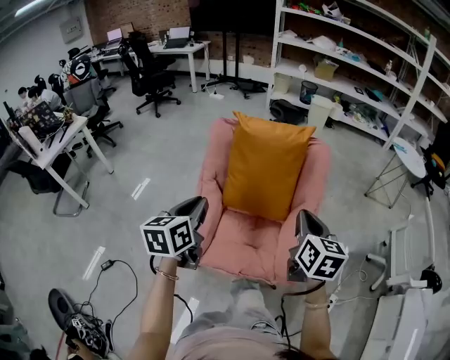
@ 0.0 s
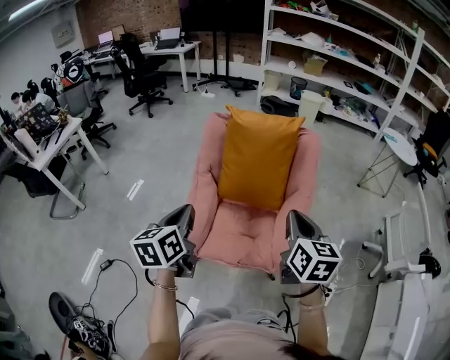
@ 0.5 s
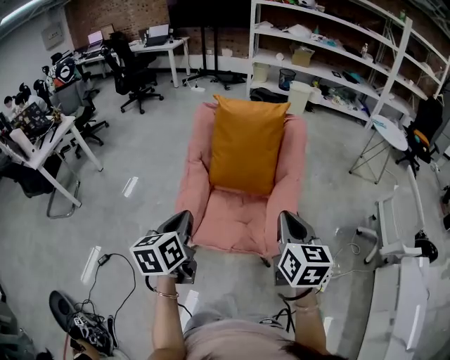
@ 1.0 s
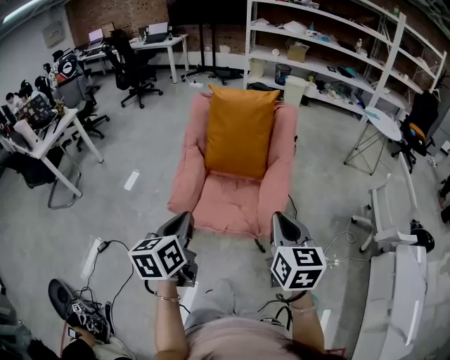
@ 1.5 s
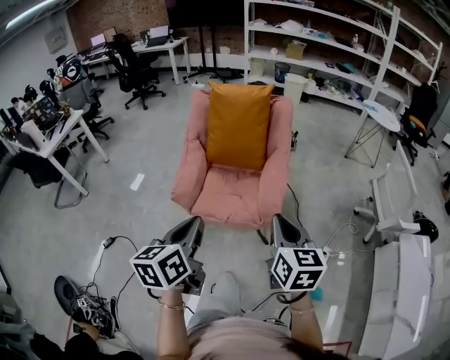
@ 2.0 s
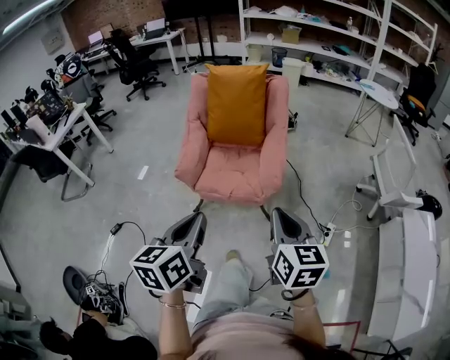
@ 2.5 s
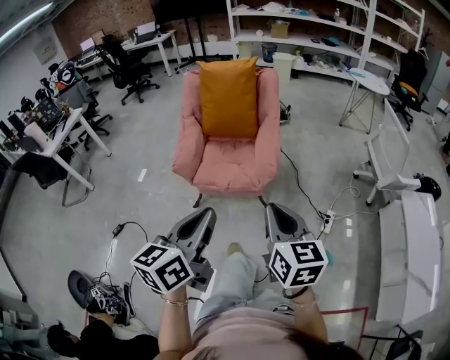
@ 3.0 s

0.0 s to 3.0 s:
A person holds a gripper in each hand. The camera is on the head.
0.0 to 1.5 s: The grippers both shift backward by about 25 cm.
1.5 to 3.0 s: The right gripper travels backward by about 25 cm. The left gripper goes some 30 cm backward and to the right, and swivels about 20 degrees.

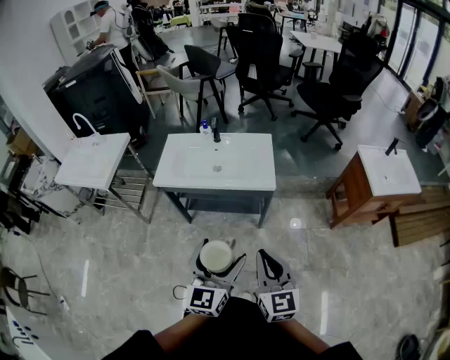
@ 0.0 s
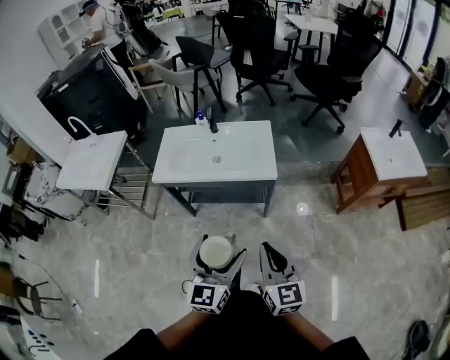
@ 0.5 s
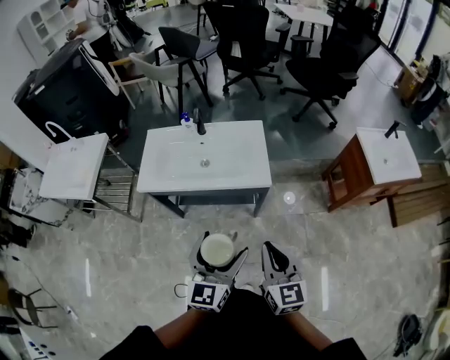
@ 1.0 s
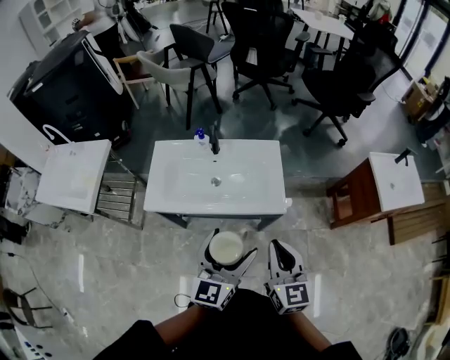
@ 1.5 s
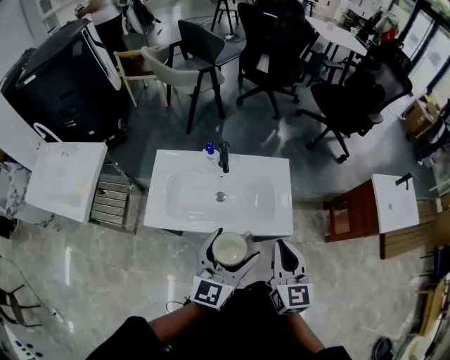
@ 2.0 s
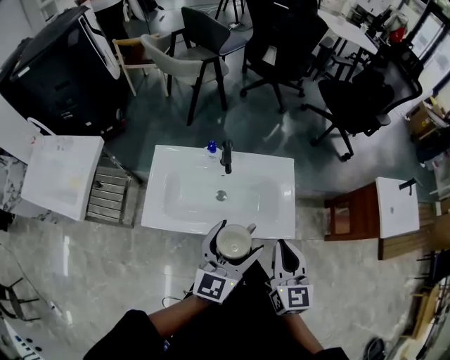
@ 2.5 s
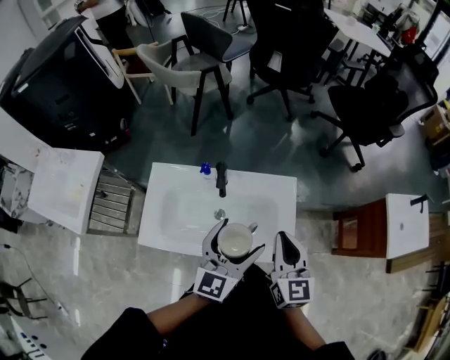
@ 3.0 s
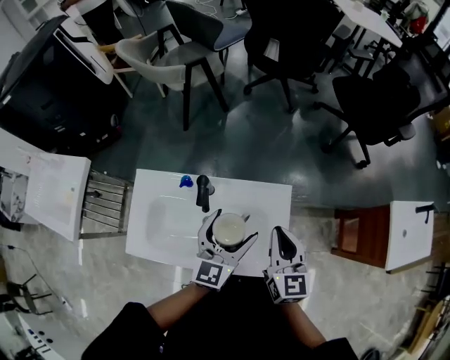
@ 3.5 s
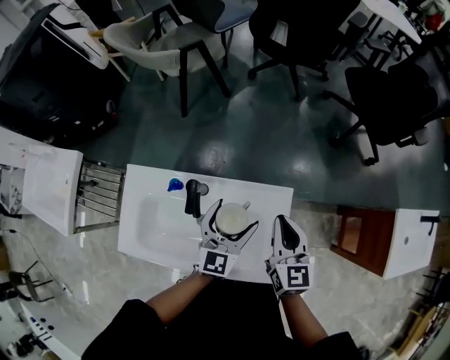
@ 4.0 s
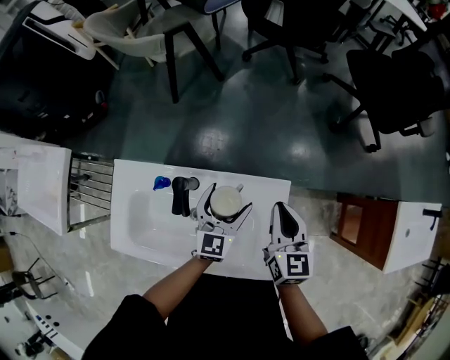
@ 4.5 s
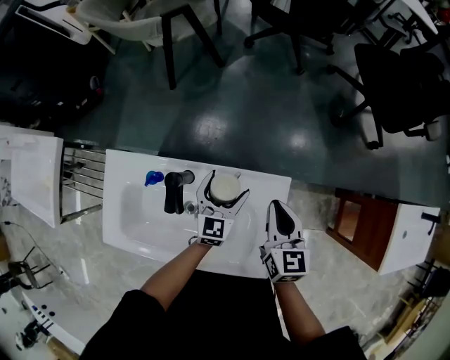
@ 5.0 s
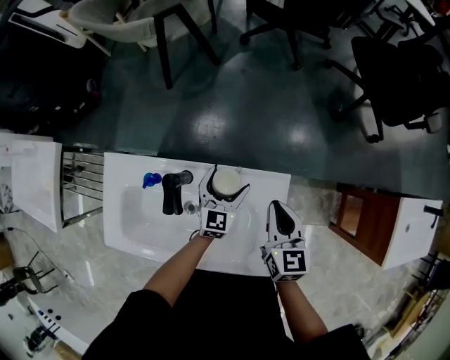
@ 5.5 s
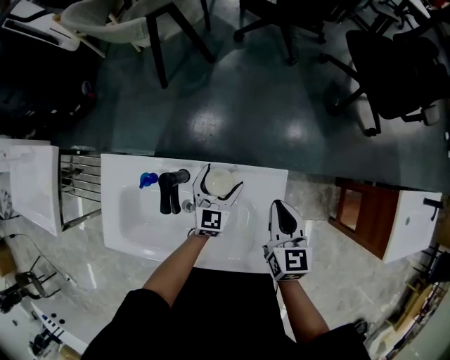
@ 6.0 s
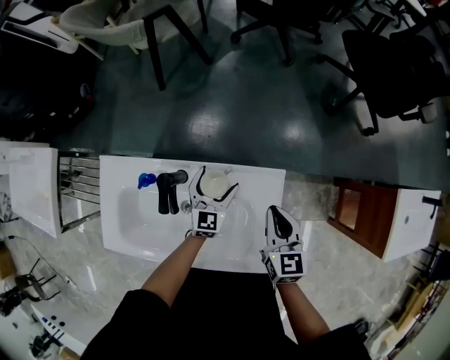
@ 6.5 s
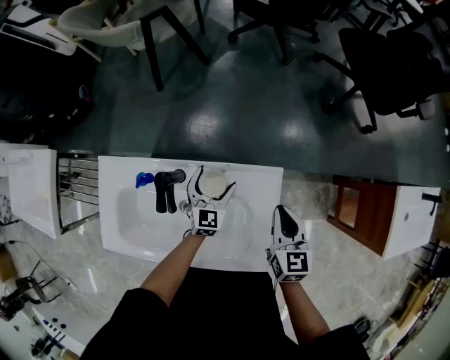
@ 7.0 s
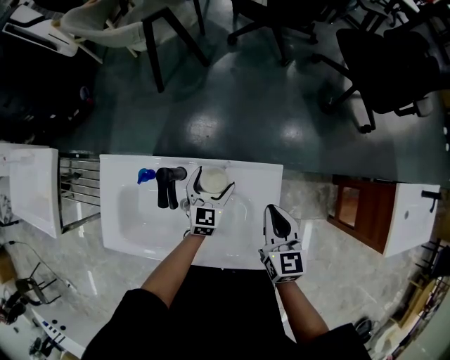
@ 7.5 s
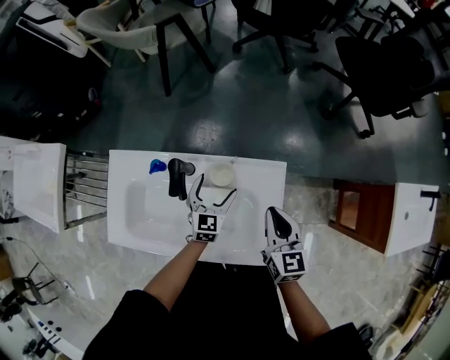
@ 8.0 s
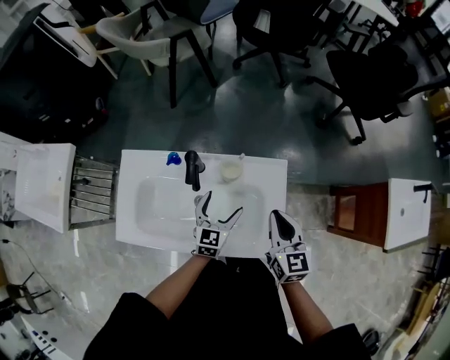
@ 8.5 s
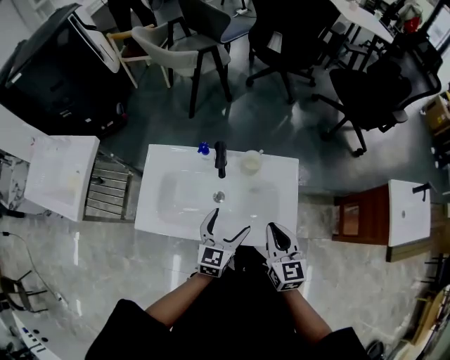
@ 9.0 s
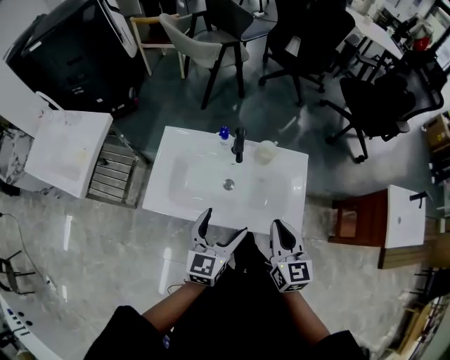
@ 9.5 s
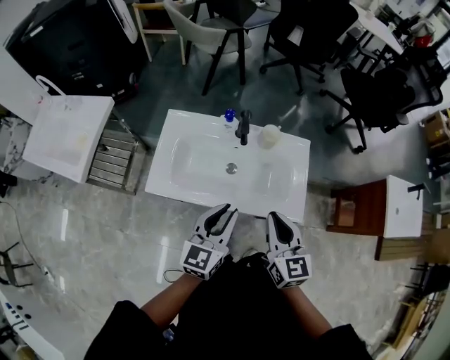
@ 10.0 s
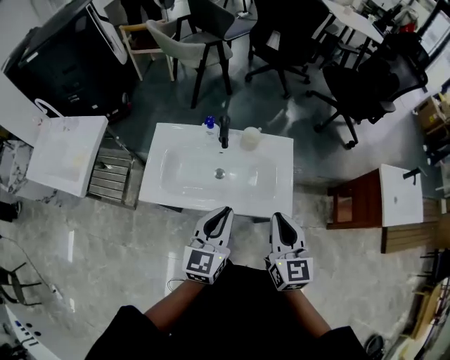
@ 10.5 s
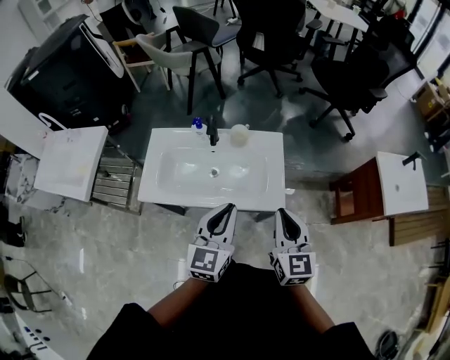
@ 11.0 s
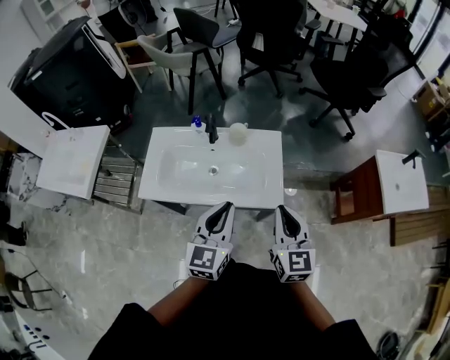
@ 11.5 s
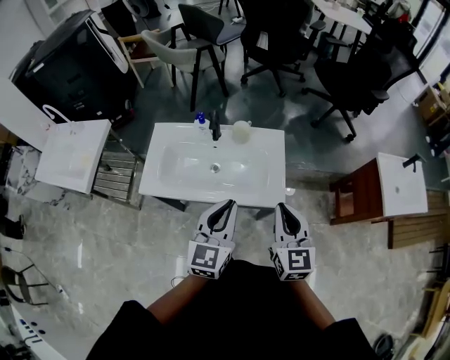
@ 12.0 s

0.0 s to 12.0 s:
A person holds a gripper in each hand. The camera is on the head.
0.0 to 2.0 s: The grippers both shift forward by some 40 cm.
2.0 to 4.0 s: The right gripper goes approximately 40 cm forward. The left gripper goes approximately 40 cm forward and downward.
4.0 to 6.0 s: The left gripper is displaced downward and forward by about 20 cm. The right gripper moves downward, about 10 cm.
6.0 to 8.0 s: Both grippers move backward, roughly 5 cm.
8.0 to 10.0 s: The left gripper shifts some 40 cm backward, upward and to the left, rotates approximately 20 degrees, and closes. The right gripper is displaced backward, to the left and upward by roughly 35 cm.
10.0 to 12.0 s: The right gripper shifts some 15 cm to the right and upward. The left gripper moves to the right, upward and backward, approximately 15 cm.

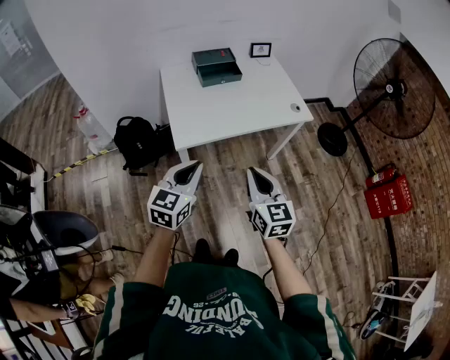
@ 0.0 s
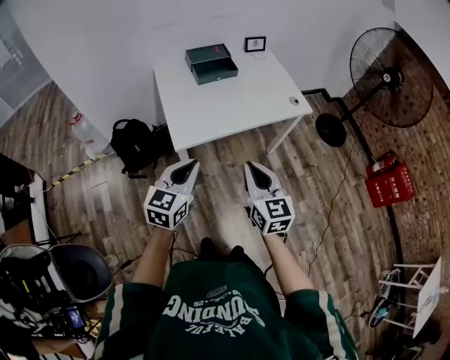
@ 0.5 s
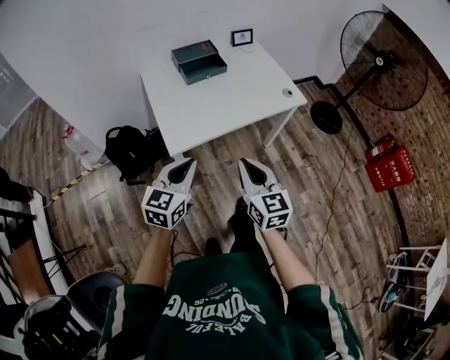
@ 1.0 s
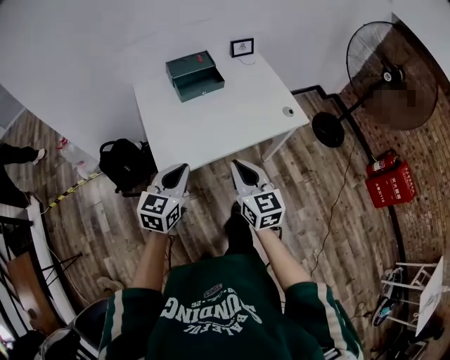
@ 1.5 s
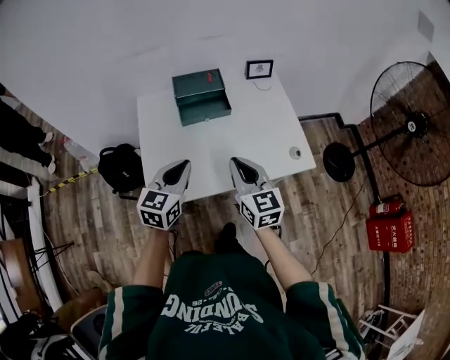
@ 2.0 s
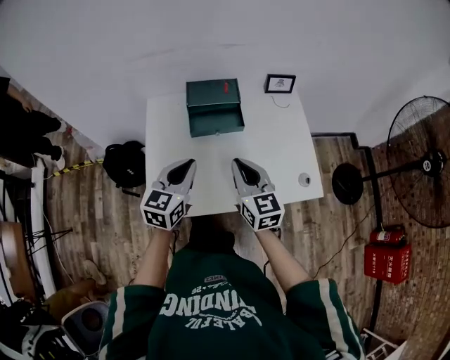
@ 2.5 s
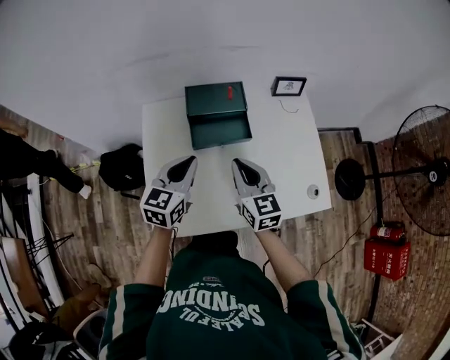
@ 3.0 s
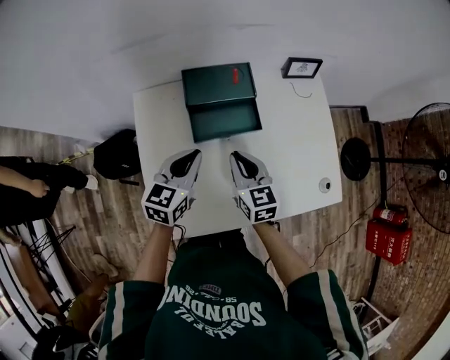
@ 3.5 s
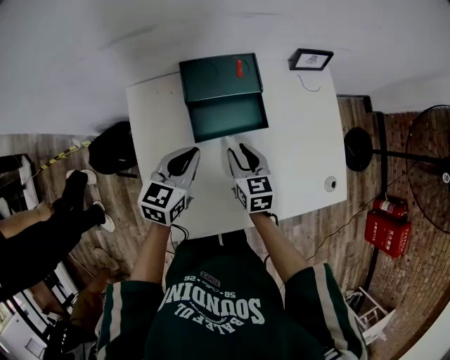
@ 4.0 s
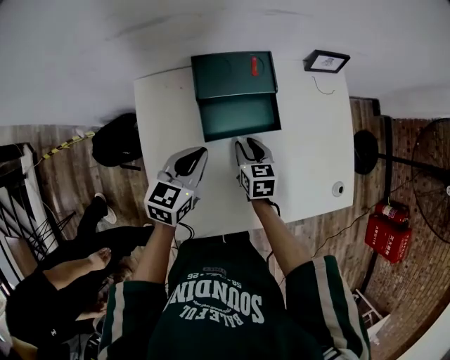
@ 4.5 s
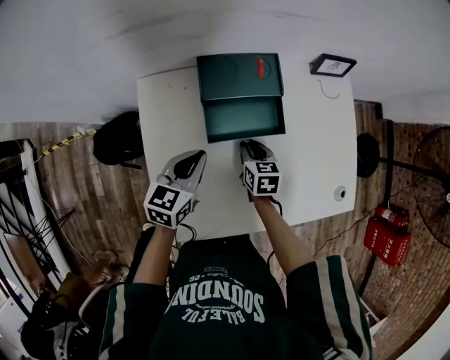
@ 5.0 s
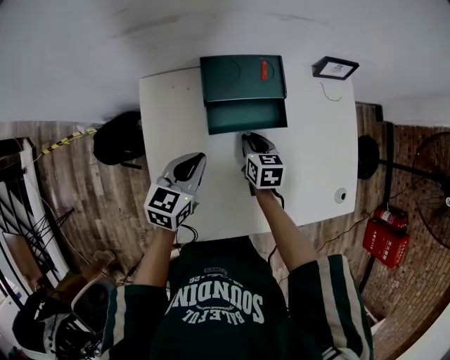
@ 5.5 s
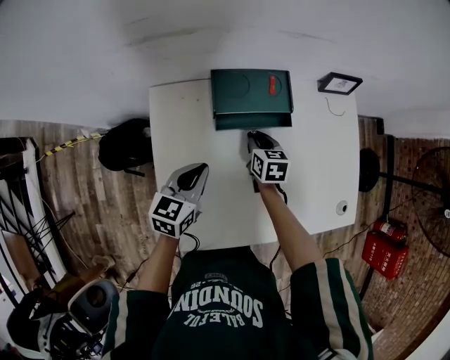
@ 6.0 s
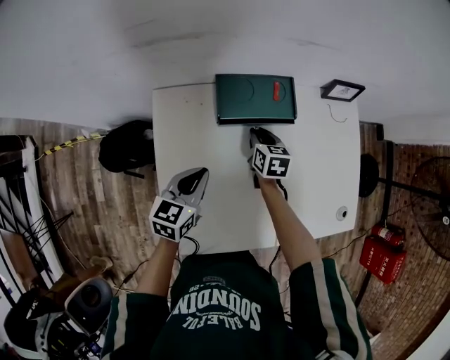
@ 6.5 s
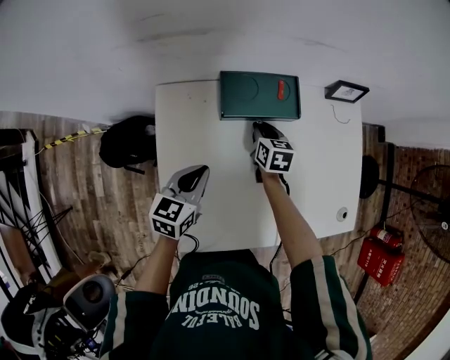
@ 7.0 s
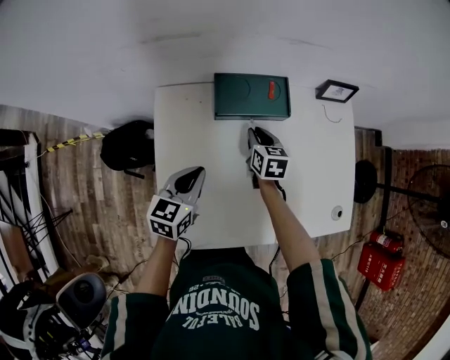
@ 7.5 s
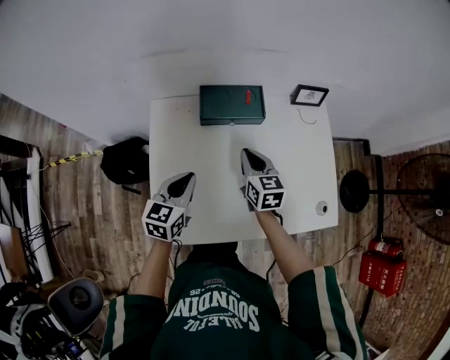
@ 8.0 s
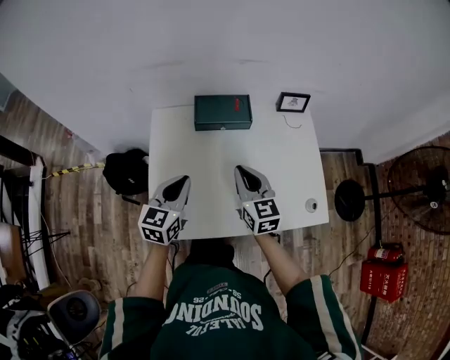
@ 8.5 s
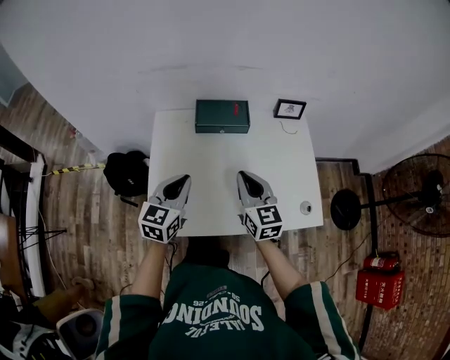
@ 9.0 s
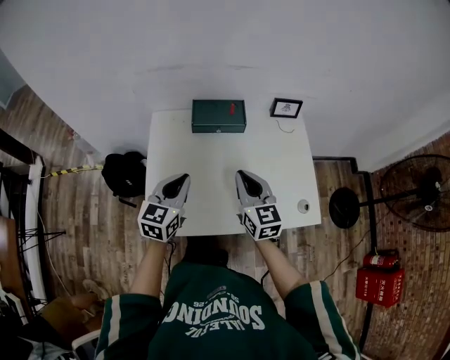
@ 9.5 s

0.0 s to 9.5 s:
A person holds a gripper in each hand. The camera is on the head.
0.0 to 2.0 s: The grippers both shift forward by some 35 cm.
2.0 to 4.0 s: The two grippers go roughly 30 cm forward and downward. The right gripper turns by some 30 degrees, and opens up.
4.0 to 5.5 s: The right gripper goes roughly 10 cm downward and forward.
5.5 to 7.5 s: The right gripper heads forward, covering about 5 cm.
7.5 to 9.5 s: The left gripper is displaced upward, backward and to the right by approximately 20 cm. The right gripper moves backward and upward, some 30 cm, and changes its angle by approximately 30 degrees.

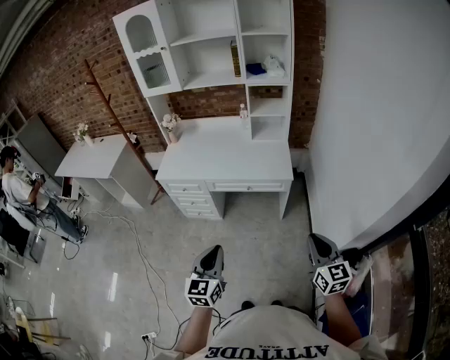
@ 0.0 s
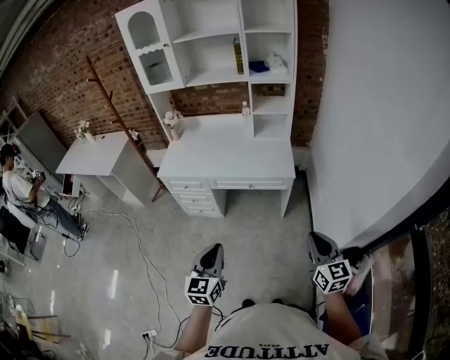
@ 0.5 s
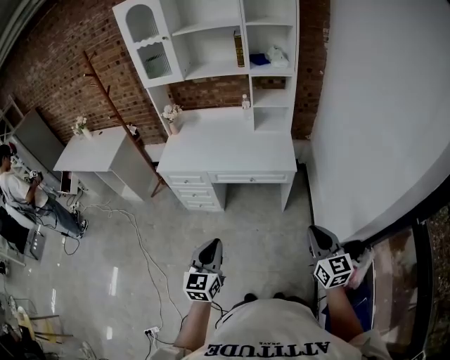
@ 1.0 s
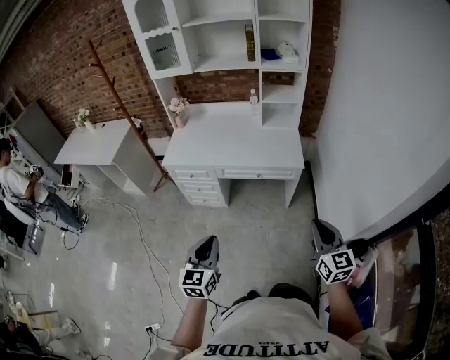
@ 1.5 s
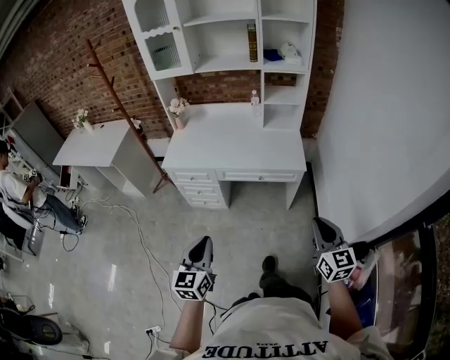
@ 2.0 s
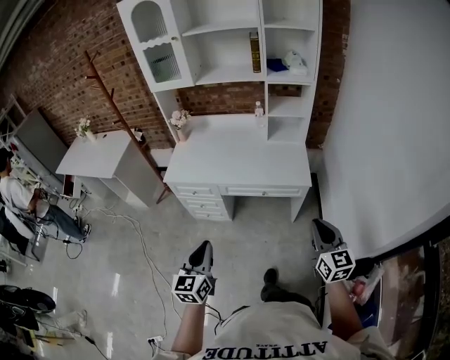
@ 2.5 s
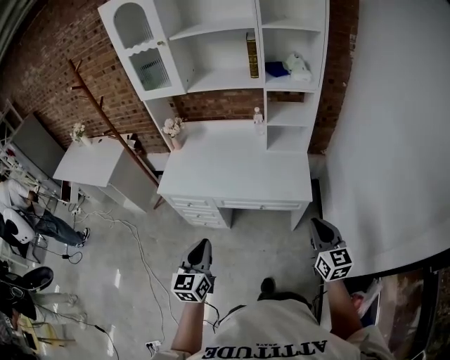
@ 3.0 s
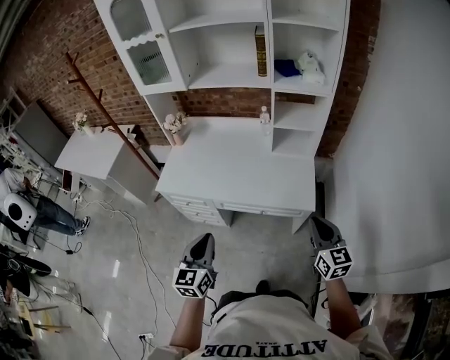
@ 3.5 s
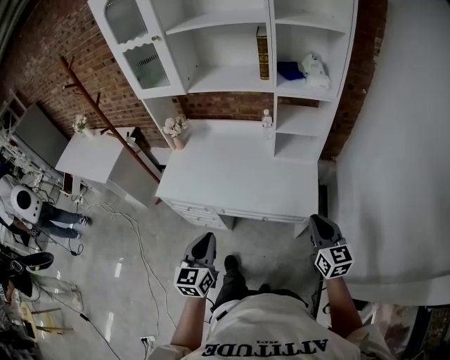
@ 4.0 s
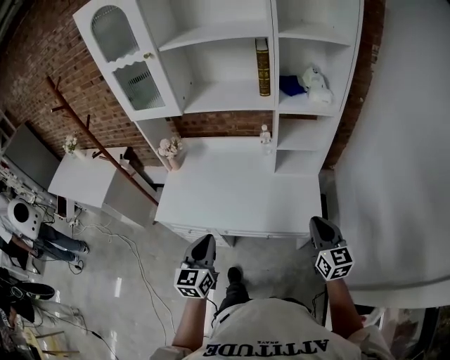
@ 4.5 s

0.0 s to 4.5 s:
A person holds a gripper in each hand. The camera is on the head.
0.0 to 2.0 s: The left gripper heads to the left, covering some 10 cm; the right gripper moves to the left, roughly 10 cm.
2.0 to 4.5 s: The two grippers travel together, forward, roughly 40 cm.
